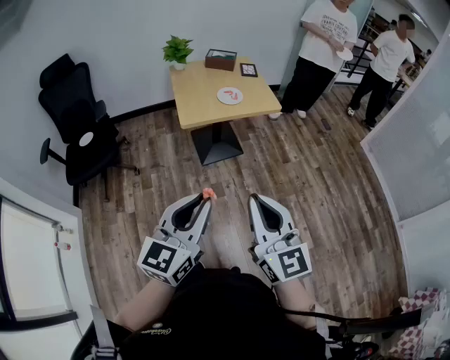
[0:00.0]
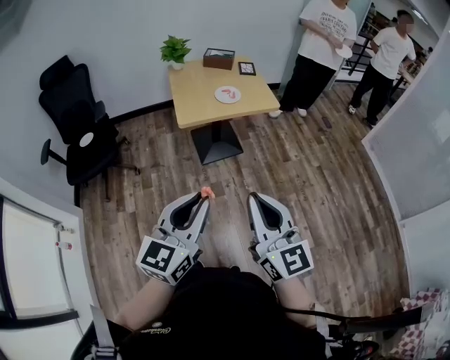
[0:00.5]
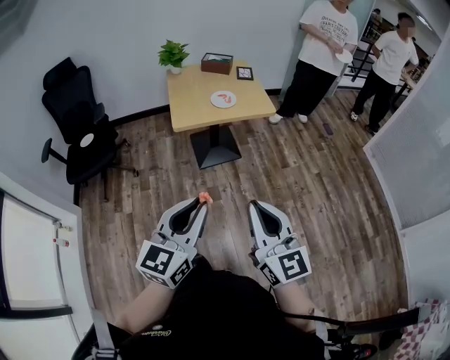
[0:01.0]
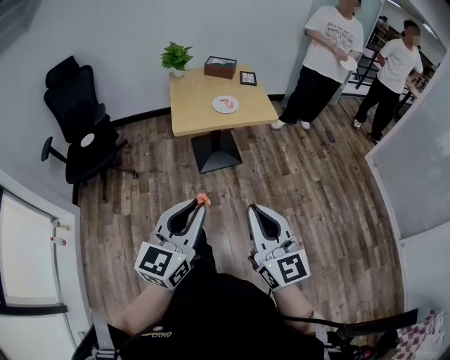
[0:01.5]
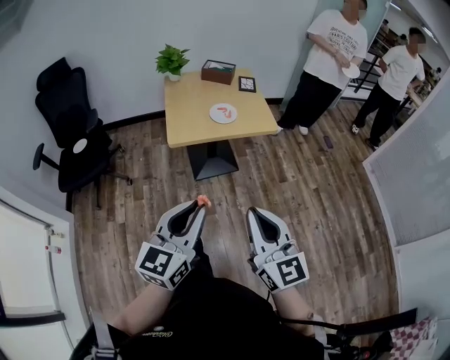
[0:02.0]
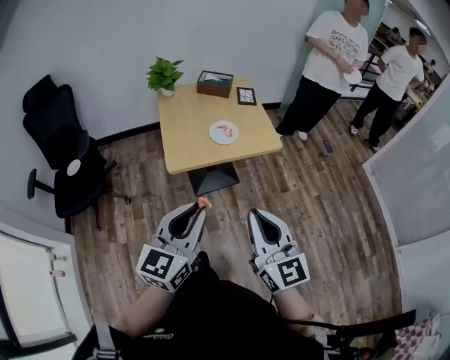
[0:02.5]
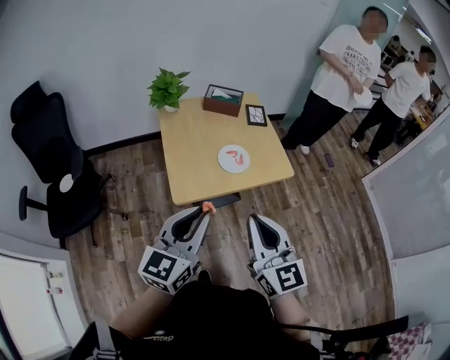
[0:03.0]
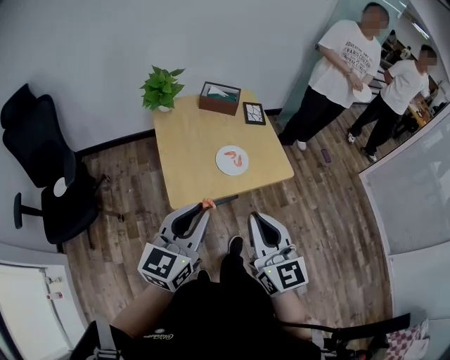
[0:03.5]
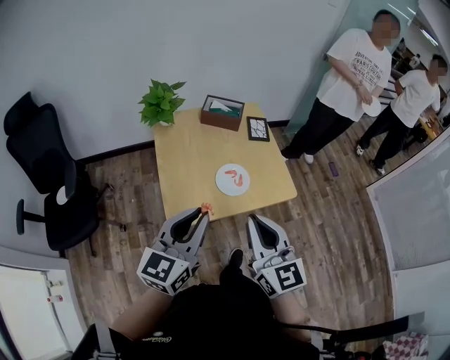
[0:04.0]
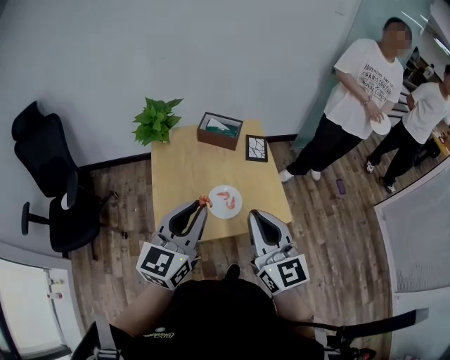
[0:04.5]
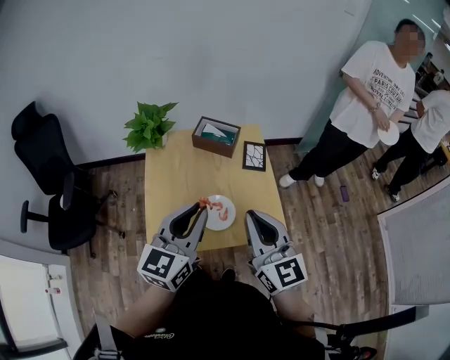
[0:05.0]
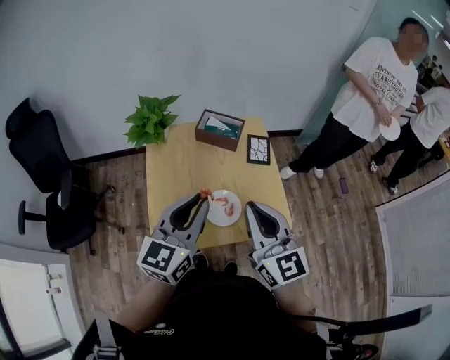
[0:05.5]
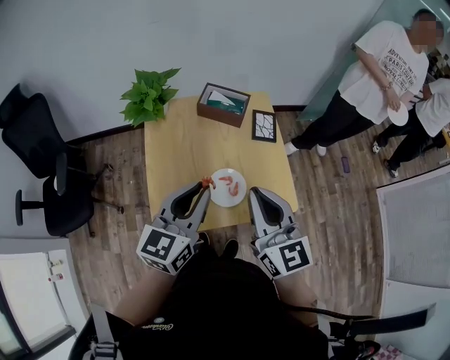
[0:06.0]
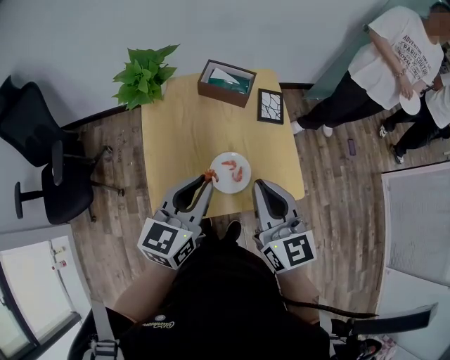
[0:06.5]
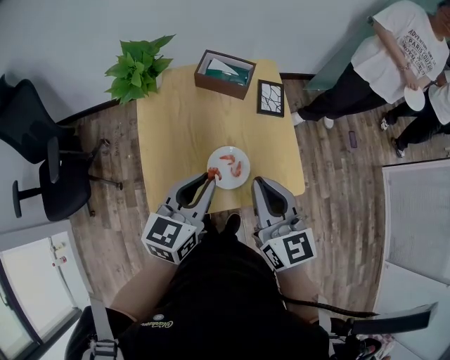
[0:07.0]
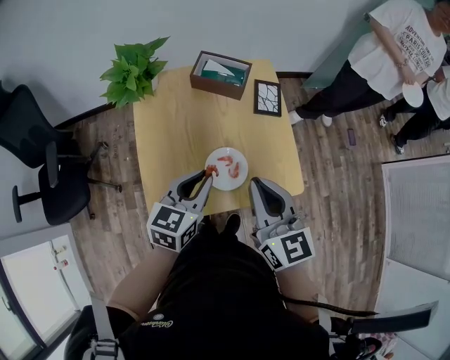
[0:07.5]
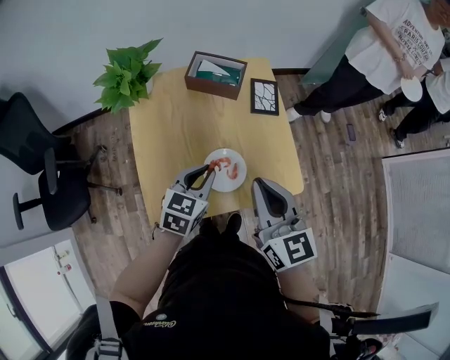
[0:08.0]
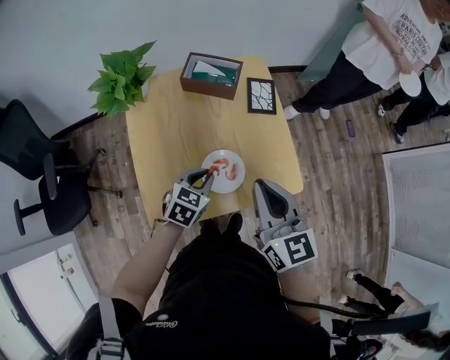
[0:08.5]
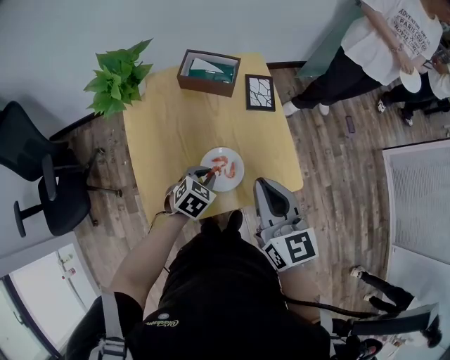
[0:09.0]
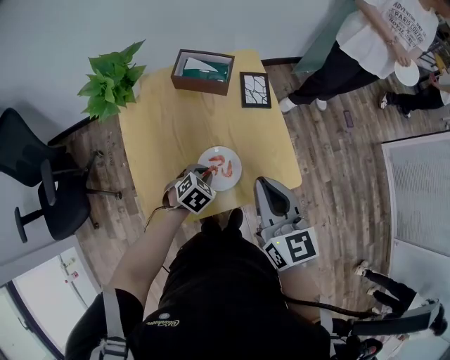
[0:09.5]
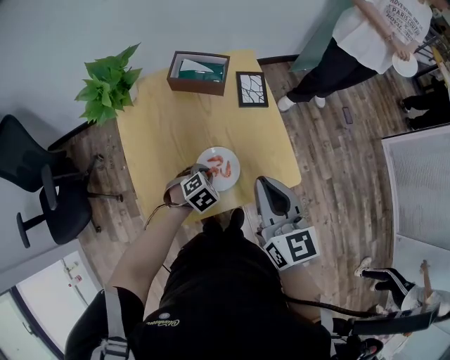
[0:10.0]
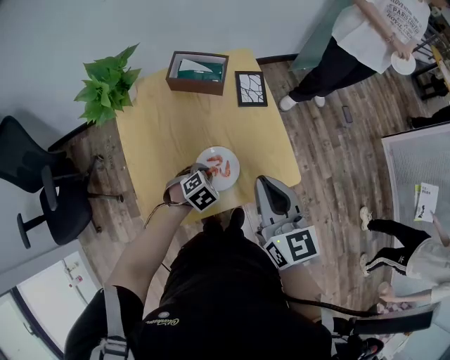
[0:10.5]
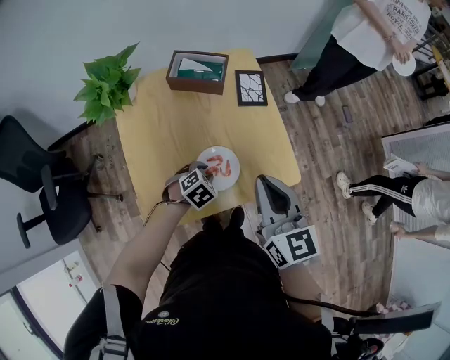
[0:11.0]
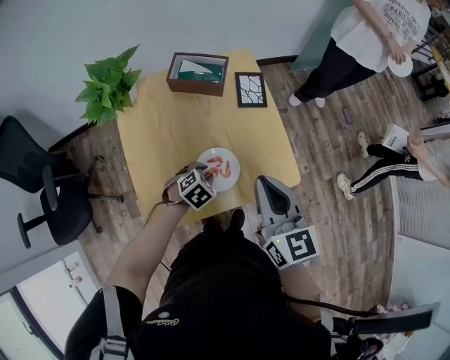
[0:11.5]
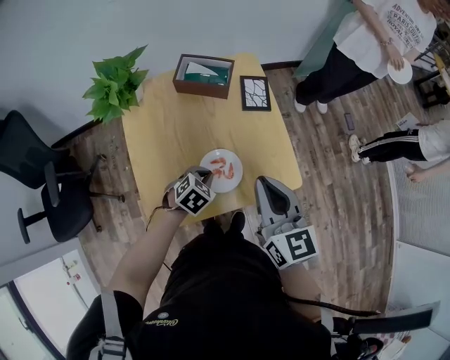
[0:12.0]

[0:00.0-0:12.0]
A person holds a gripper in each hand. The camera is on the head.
0:00.0 to 0:02.0: Both grippers travel together forward and to the right, about 15 cm.
0:02.0 to 0:04.0: The pair of grippers is taken forward, roughly 40 cm.
0:04.0 to 0:06.0: Both grippers travel together forward, roughly 20 cm.
0:06.0 to 0:08.0: The right gripper heads downward, covering some 5 cm. The left gripper shifts approximately 20 cm downward, and changes its angle by about 30 degrees.
0:08.0 to 0:10.0: The left gripper shifts approximately 15 cm downward, and points its fingers roughly 30 degrees further downward.
0:10.0 to 0:12.0: The grippers make only small movements.

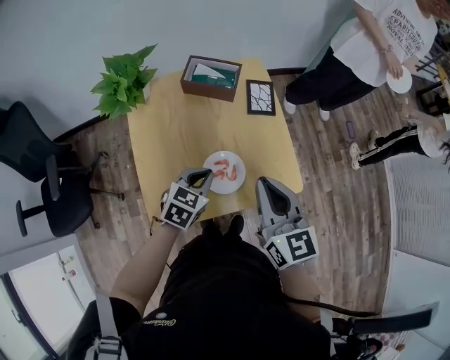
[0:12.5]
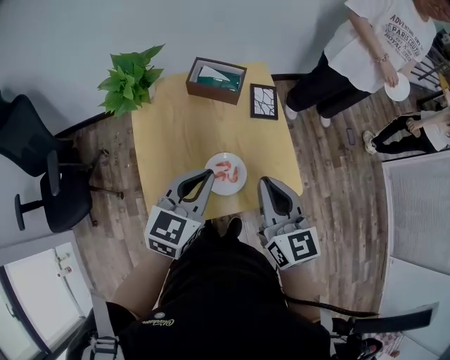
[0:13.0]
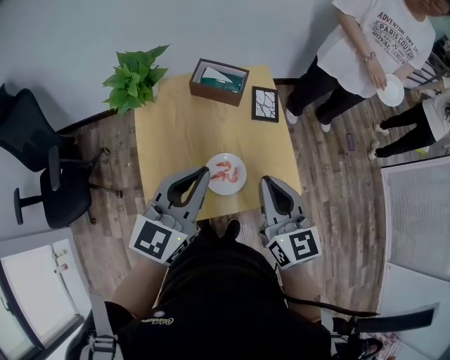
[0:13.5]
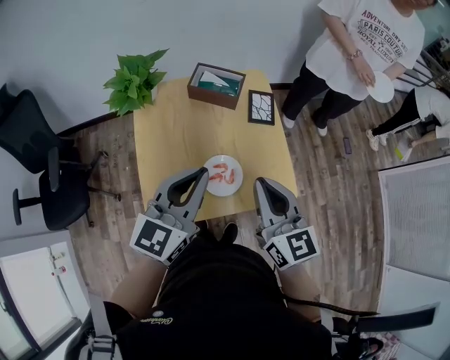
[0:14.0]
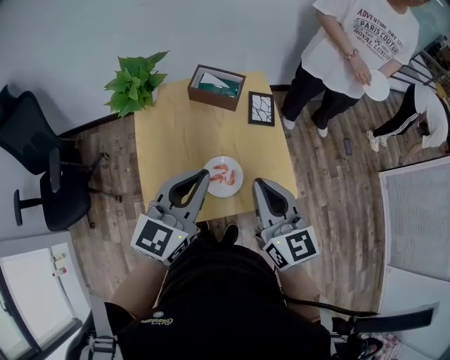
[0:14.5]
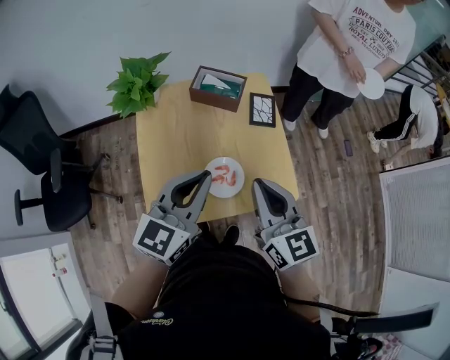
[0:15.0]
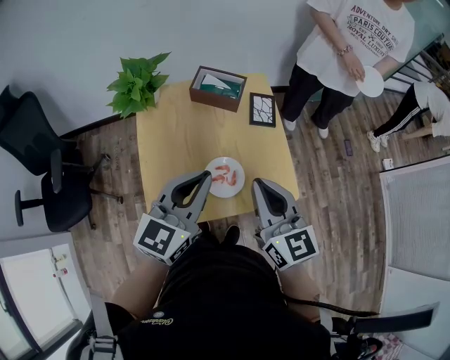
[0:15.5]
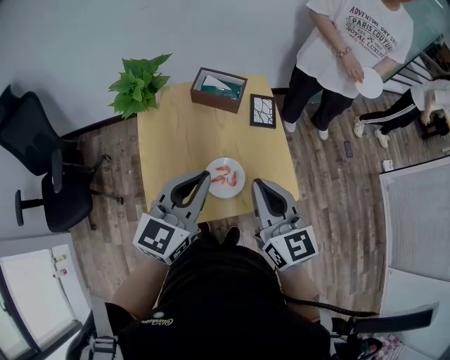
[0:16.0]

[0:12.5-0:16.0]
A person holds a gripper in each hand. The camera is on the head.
0:12.5 to 0:14.5: The left gripper travels upward by approximately 20 cm, and angles its fingers upward, by some 40 degrees.
0:14.5 to 0:16.0: Both grippers stay about where they are.

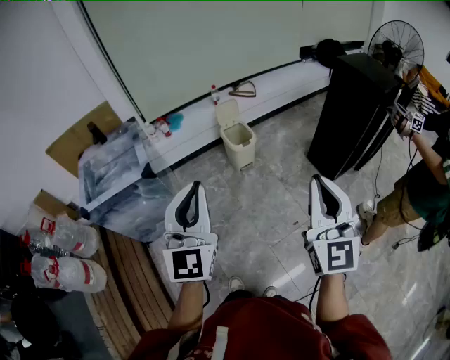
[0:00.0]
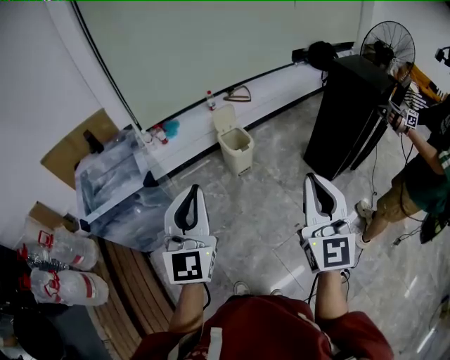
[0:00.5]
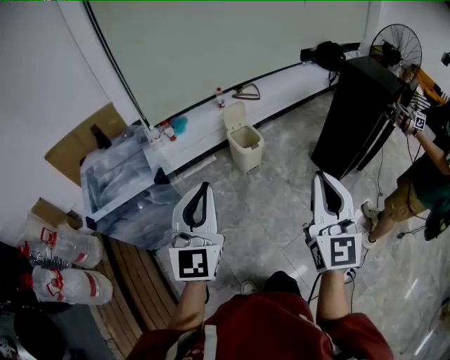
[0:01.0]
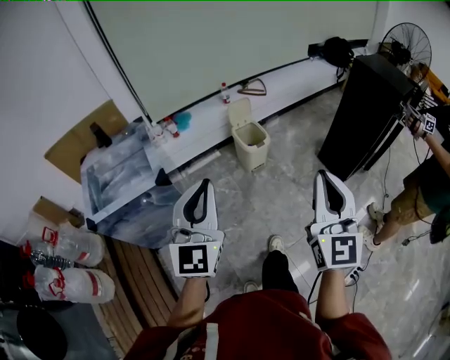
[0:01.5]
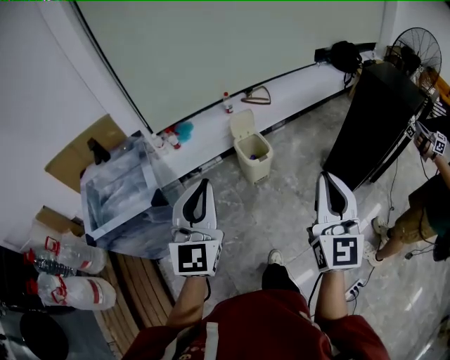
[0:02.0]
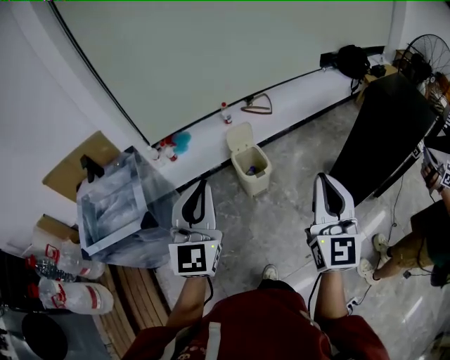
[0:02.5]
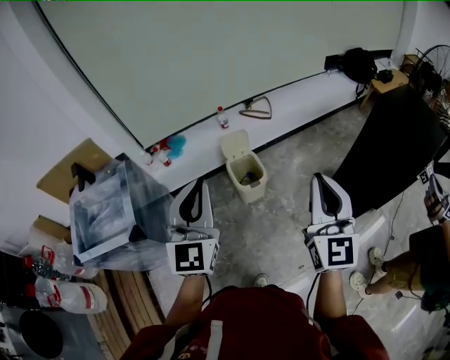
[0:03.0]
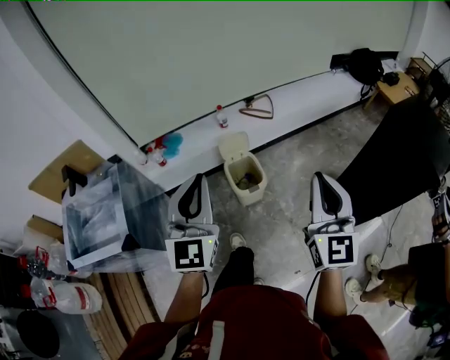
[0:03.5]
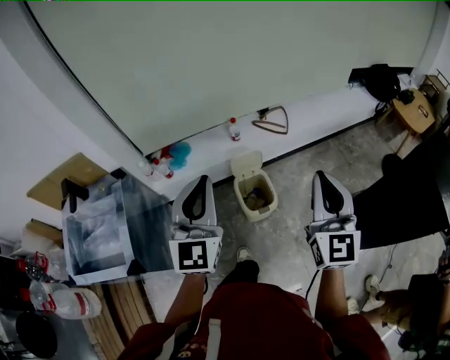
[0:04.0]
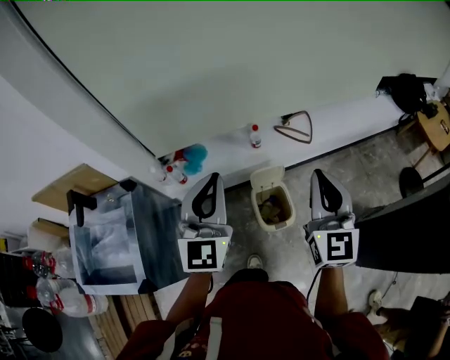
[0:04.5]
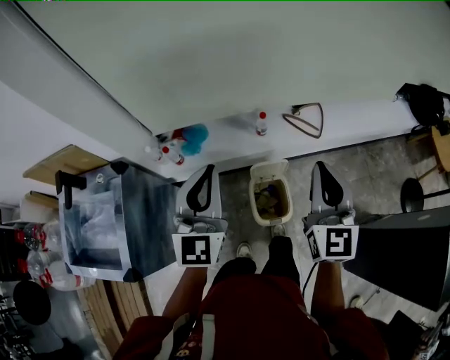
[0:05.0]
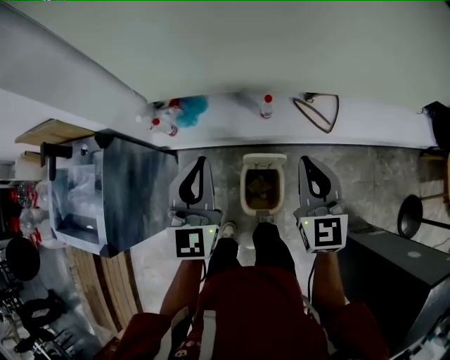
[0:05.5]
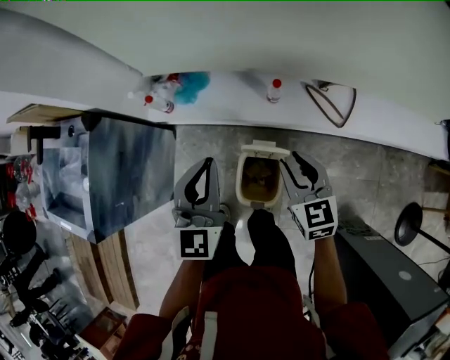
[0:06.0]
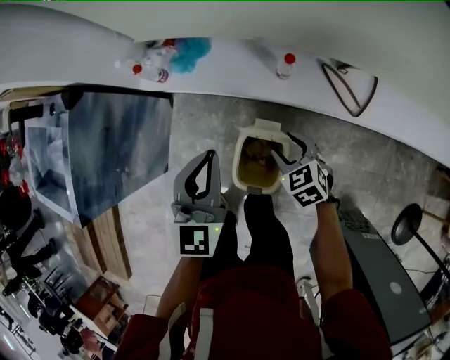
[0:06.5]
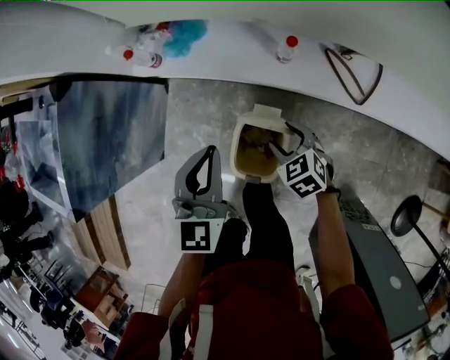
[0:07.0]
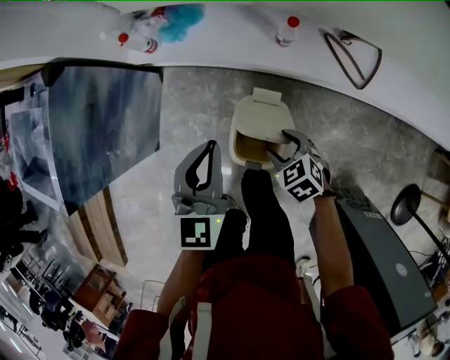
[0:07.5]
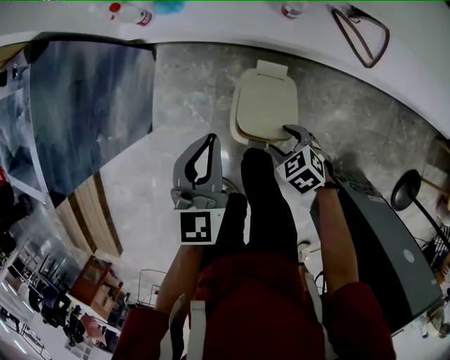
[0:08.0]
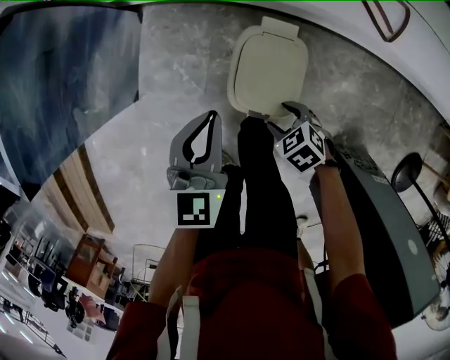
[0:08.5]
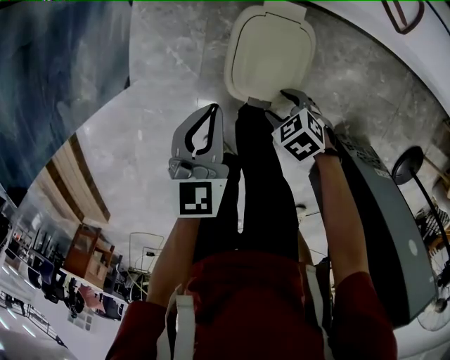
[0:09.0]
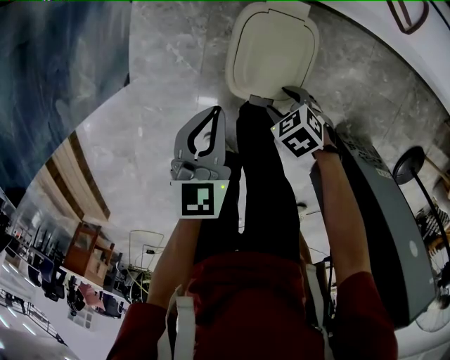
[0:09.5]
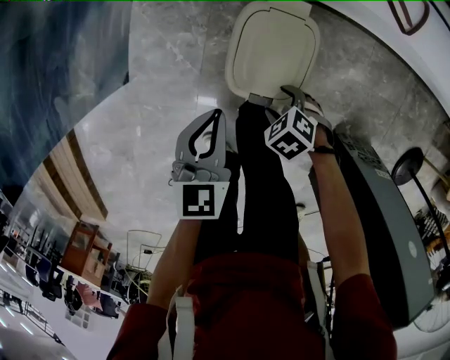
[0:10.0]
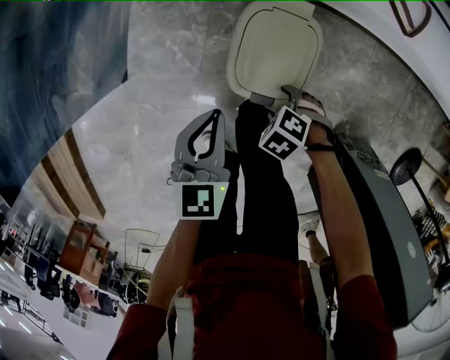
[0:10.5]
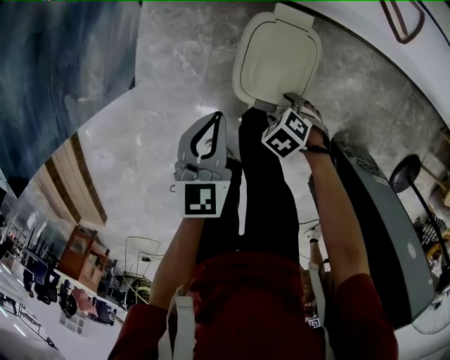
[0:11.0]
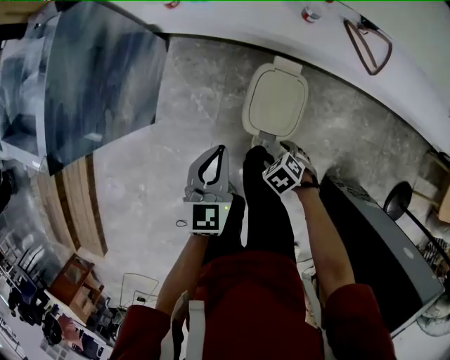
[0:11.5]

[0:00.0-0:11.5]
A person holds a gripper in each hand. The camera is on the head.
0:00.0 to 0:02.0: The right gripper shifts approximately 15 cm forward. Meanwhile the left gripper travels forward and to the left by approximately 20 cm.
0:02.0 to 0:04.0: The pair of grippers is taken forward, roughly 40 cm.
0:04.0 to 0:06.0: The left gripper ends up some 35 cm from where it was, and changes its angle by approximately 30 degrees. Meanwhile the right gripper shifts by about 50 cm, tilts its fingers roughly 30 degrees downward, and opens up.
0:06.0 to 0:07.5: The right gripper travels downward by approximately 25 cm, tilts its fingers roughly 30 degrees downward, and opens. Meanwhile the left gripper moves downward and backward, about 15 cm.
0:07.5 to 0:09.5: The grippers both shift downward, backward and to the left by about 25 cm.
0:09.5 to 0:11.5: Both grippers move upward, approximately 10 cm.
